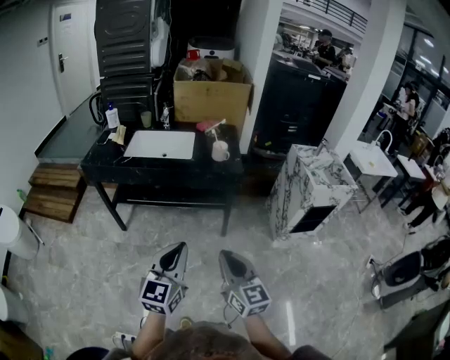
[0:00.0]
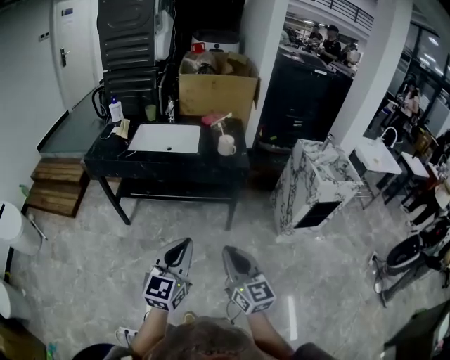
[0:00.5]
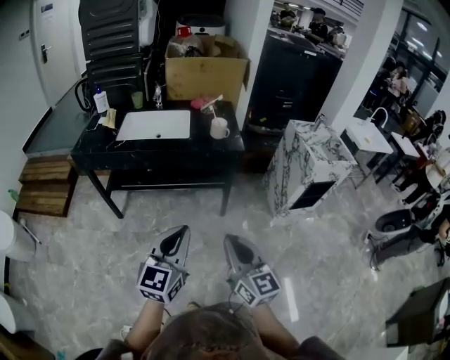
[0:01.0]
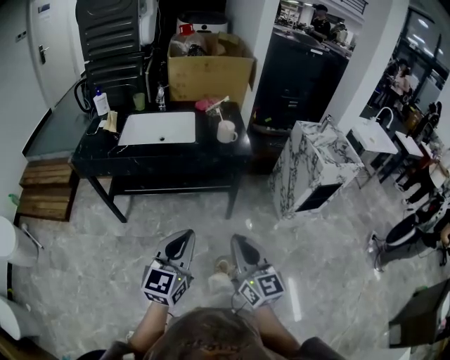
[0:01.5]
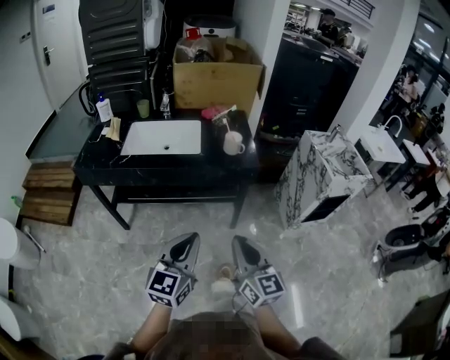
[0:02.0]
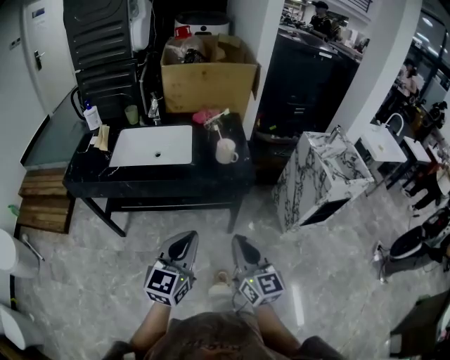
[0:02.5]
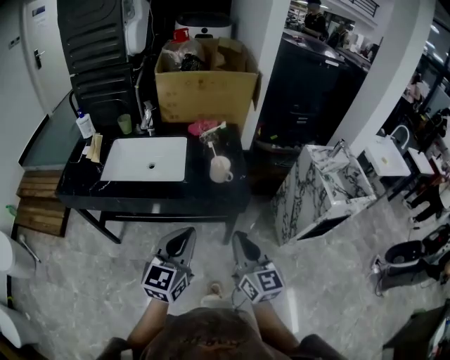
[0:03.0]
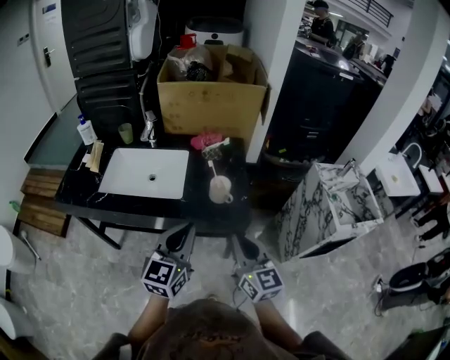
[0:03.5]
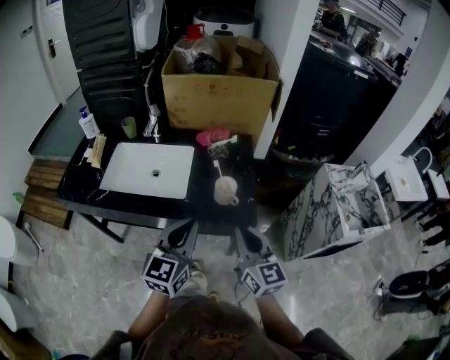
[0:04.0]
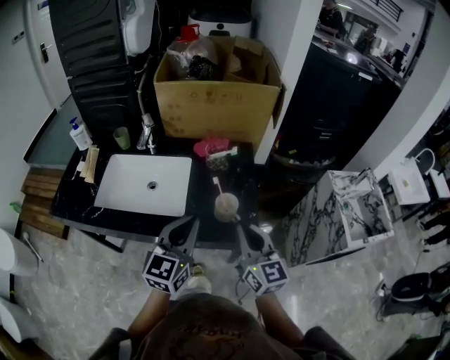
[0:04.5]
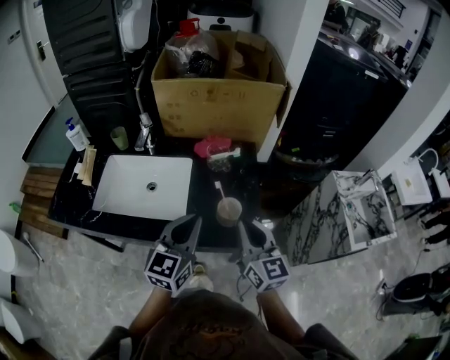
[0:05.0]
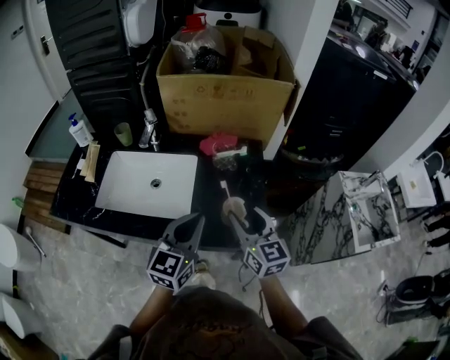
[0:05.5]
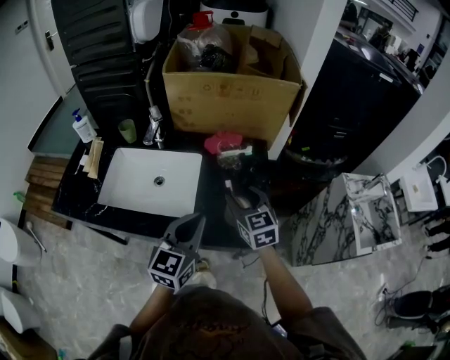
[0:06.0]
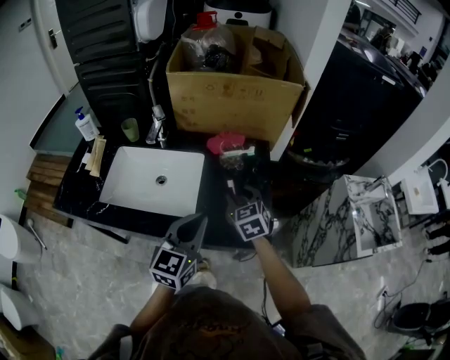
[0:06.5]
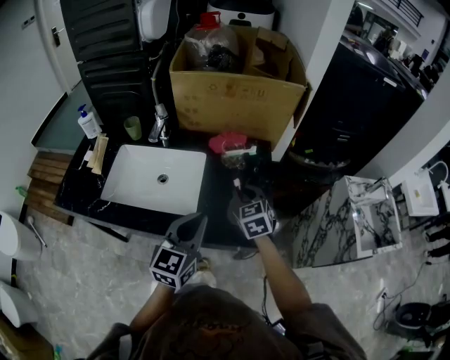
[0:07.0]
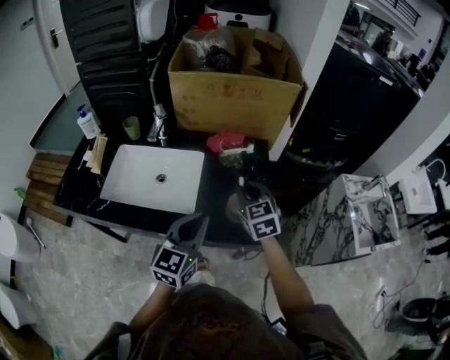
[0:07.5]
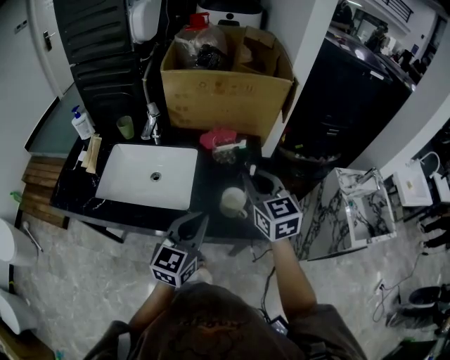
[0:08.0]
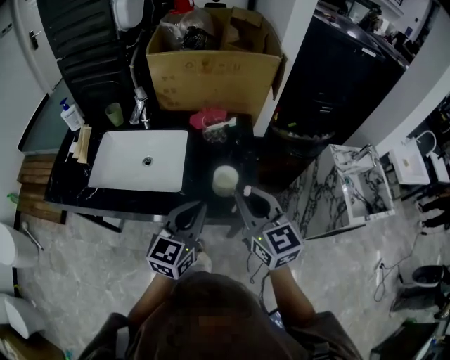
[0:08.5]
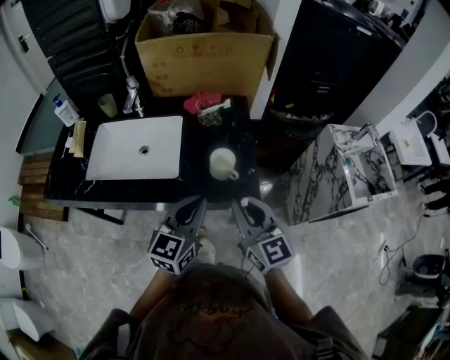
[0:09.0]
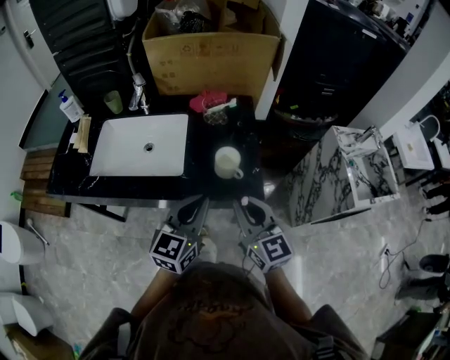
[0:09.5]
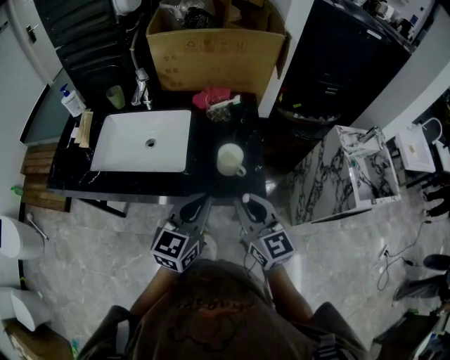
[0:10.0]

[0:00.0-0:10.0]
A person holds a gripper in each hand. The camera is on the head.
0:00.0 to 0:02.0: The grippers both shift forward by roughly 10 cm.
0:02.0 to 0:04.0: The grippers both shift forward by about 30 cm.
0:04.0 to 0:06.0: The right gripper travels forward by some 25 cm, turns by about 20 degrees, and opens its fingers. Meanwhile the left gripper is displaced forward by approximately 10 cm.
0:06.0 to 0:08.0: The right gripper goes roughly 10 cm upward, and closes its fingers.
0:08.0 to 0:10.0: The left gripper shifts some 5 cm backward. Meanwhile the right gripper moves backward and downward, approximately 20 cm.

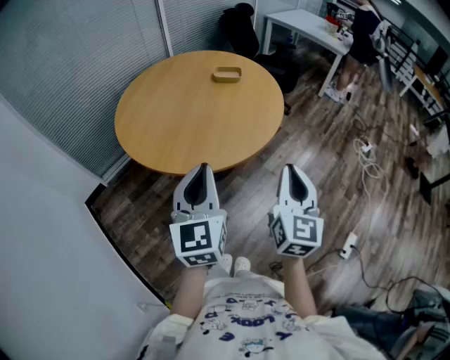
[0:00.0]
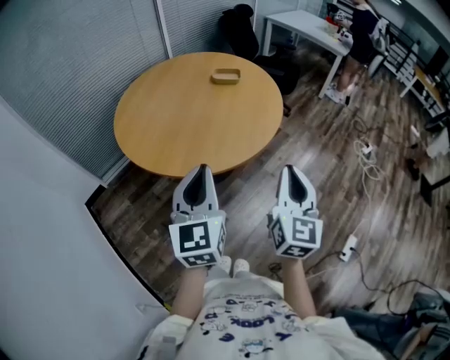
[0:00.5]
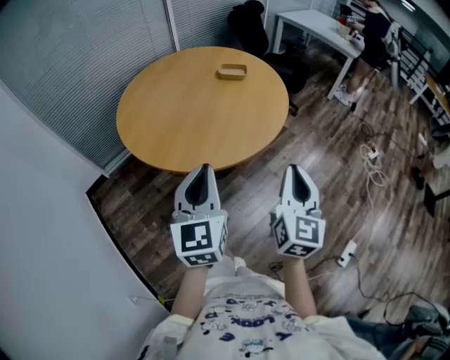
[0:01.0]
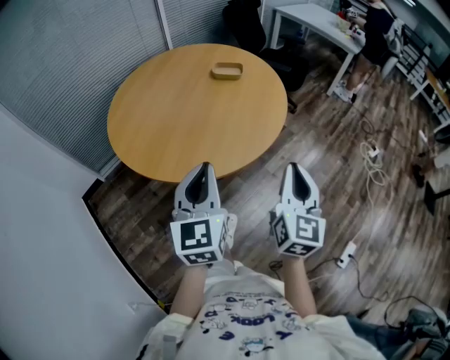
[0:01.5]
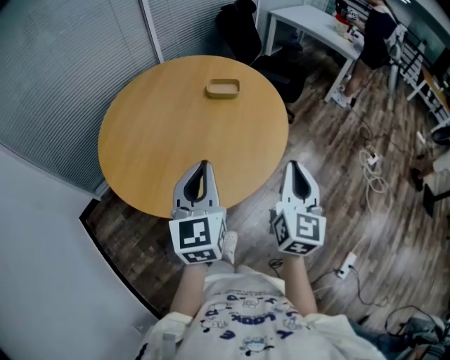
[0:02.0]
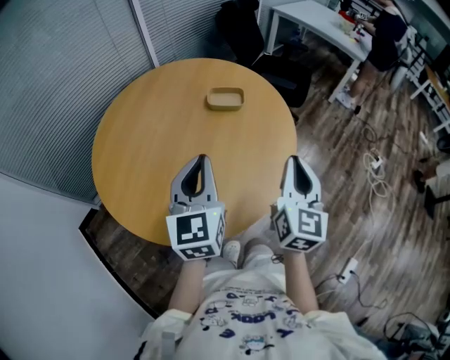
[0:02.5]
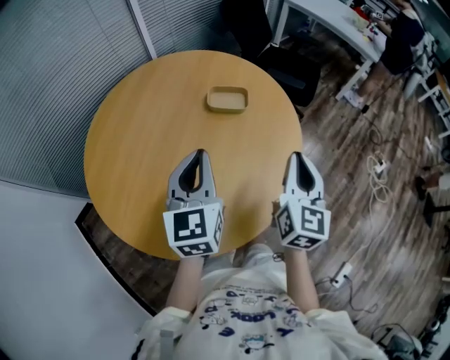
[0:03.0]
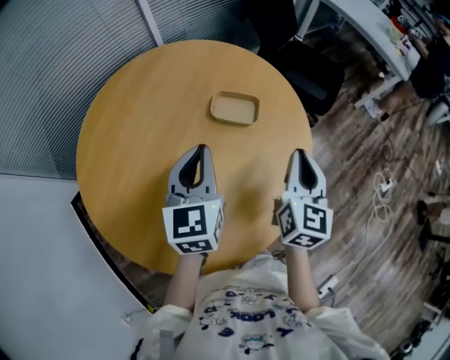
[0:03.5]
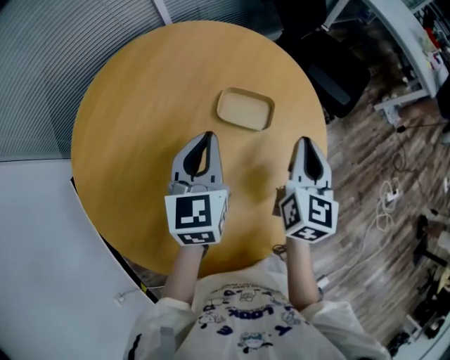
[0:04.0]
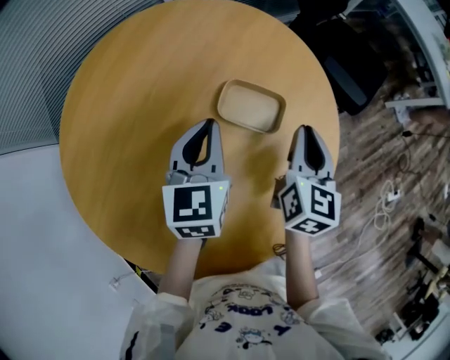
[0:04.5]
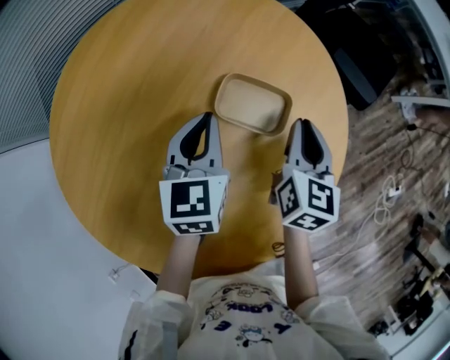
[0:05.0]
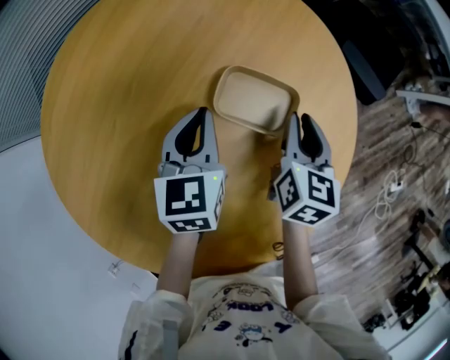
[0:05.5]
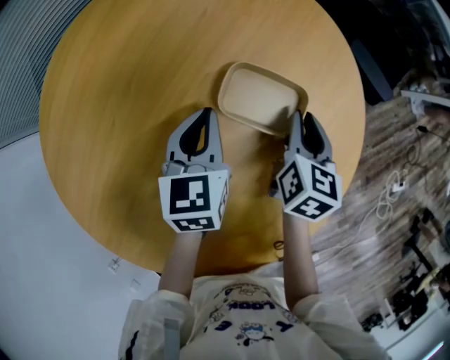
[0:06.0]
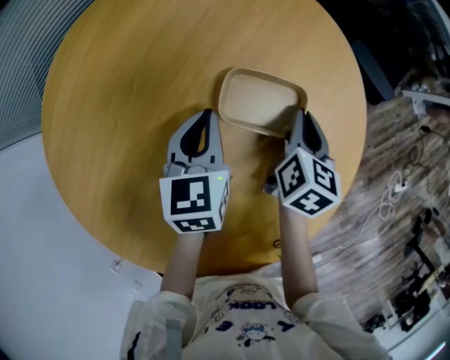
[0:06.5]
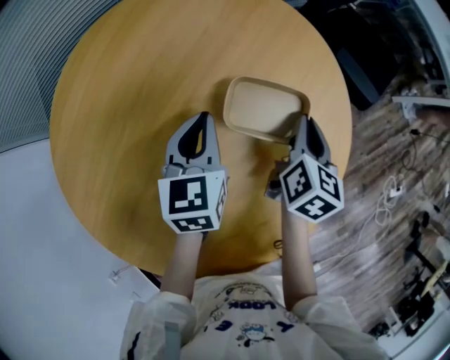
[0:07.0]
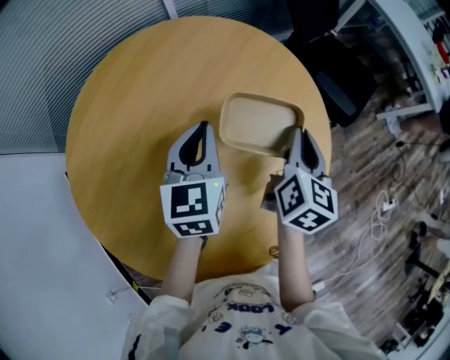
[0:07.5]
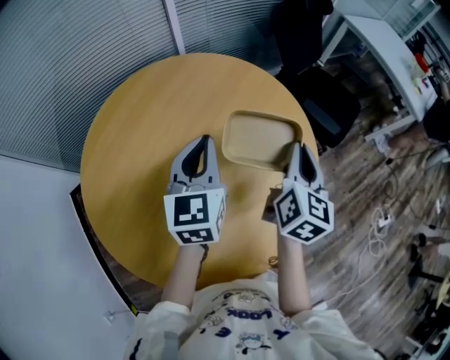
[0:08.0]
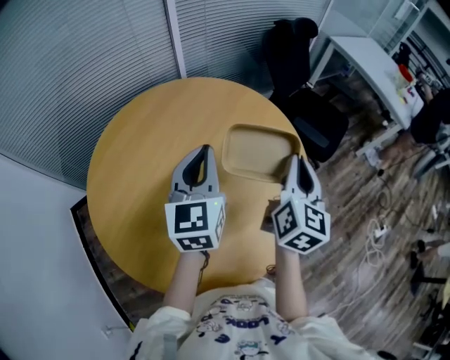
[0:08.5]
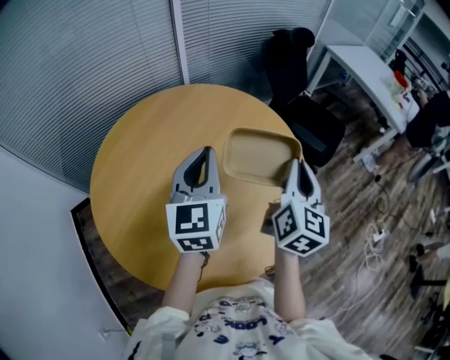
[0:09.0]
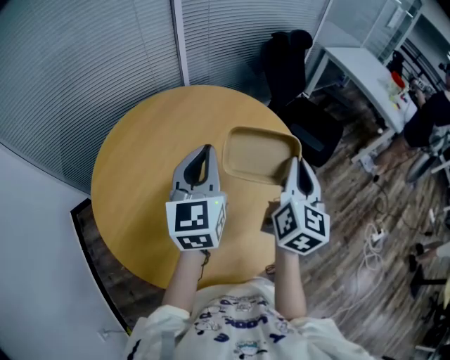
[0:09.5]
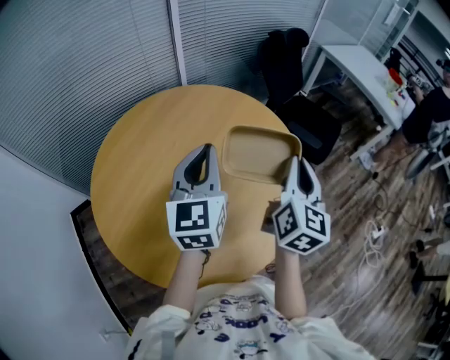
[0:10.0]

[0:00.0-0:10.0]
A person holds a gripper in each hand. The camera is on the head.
0:00.0 to 0:02.0: The two grippers go some 20 cm forward.
0:02.0 to 0:04.0: Both grippers move forward, roughly 40 cm.
0:04.0 to 0:06.0: Both grippers travel together downward and forward, approximately 20 cm.
0:06.0 to 0:08.0: The grippers both shift upward by about 25 cm. The right gripper turns by some 20 degrees, while the left gripper swivels approximately 20 degrees.
0:08.0 to 0:10.0: The right gripper heads backward and upward, covering some 15 cm. The left gripper is displaced upward and backward by approximately 15 cm.

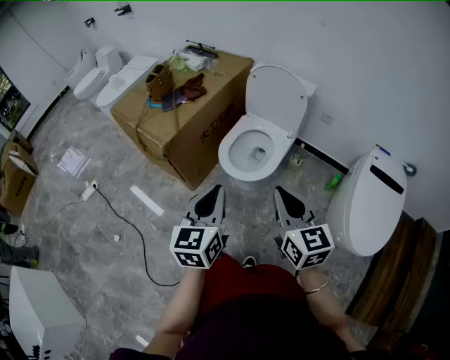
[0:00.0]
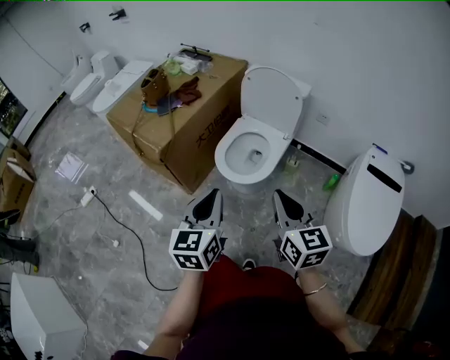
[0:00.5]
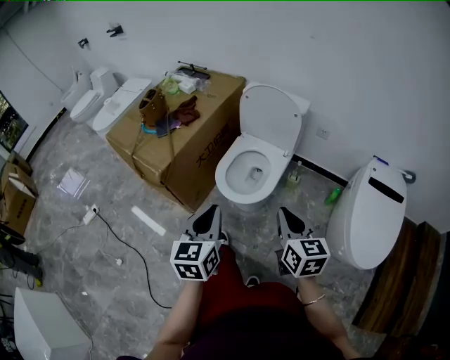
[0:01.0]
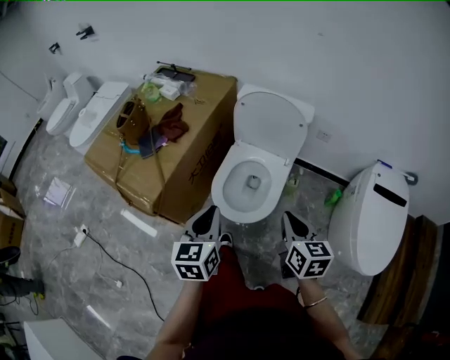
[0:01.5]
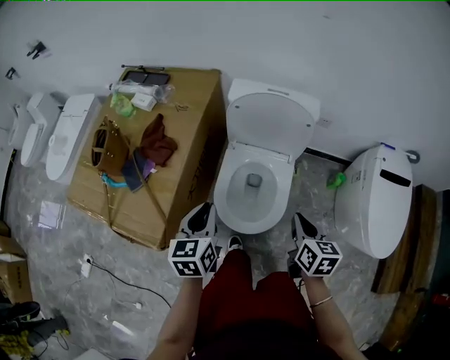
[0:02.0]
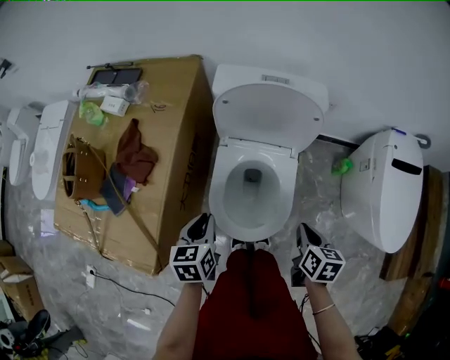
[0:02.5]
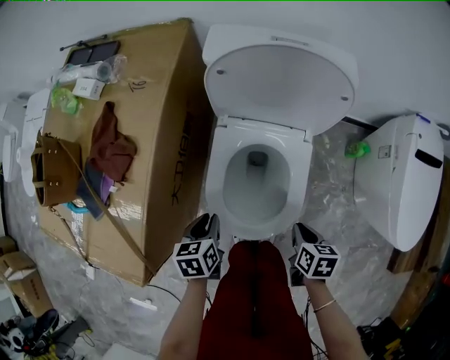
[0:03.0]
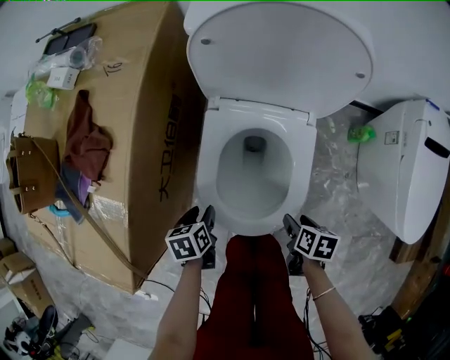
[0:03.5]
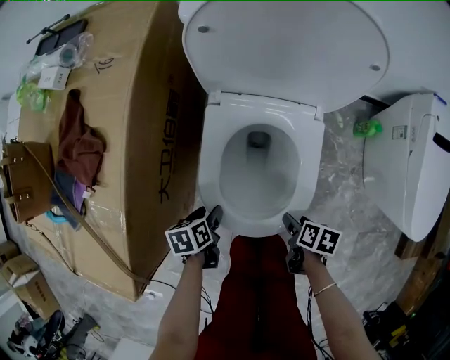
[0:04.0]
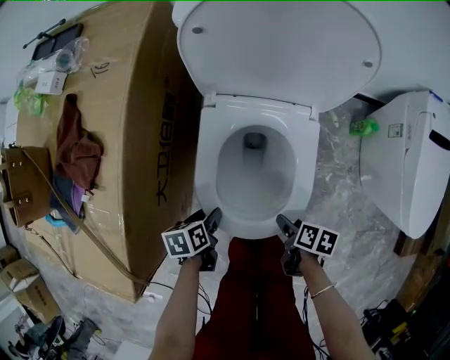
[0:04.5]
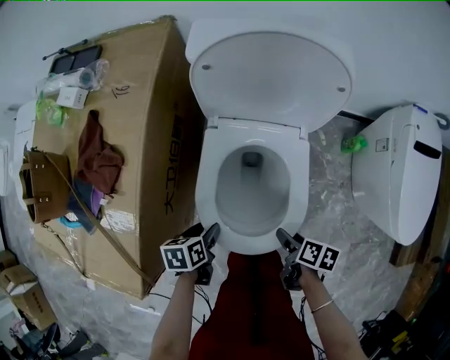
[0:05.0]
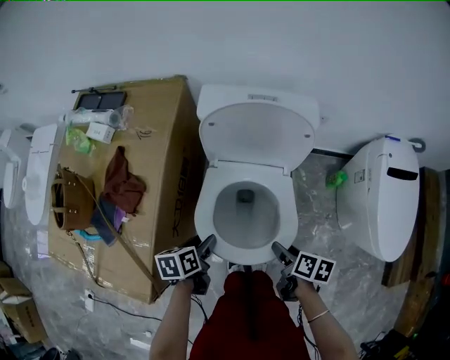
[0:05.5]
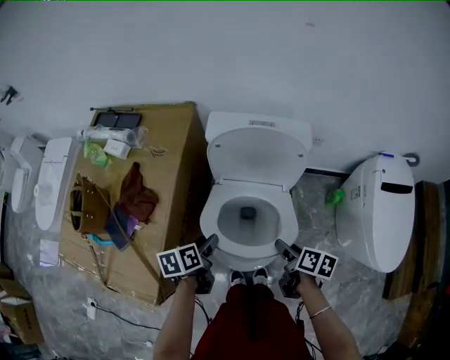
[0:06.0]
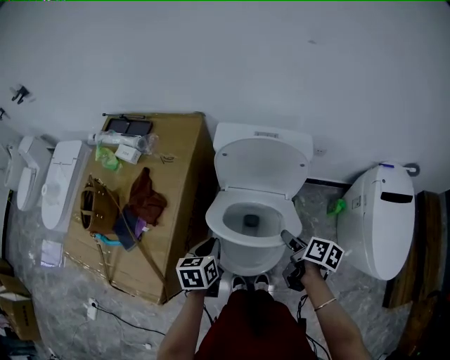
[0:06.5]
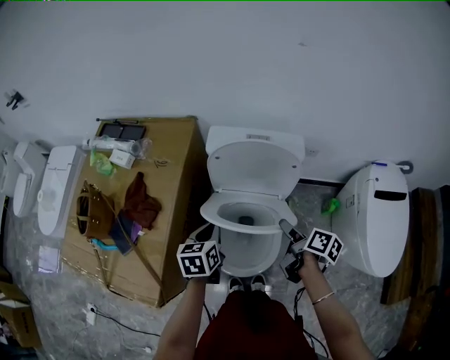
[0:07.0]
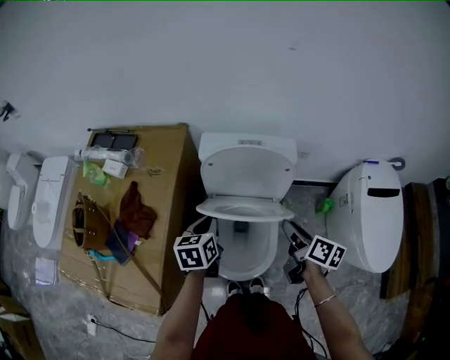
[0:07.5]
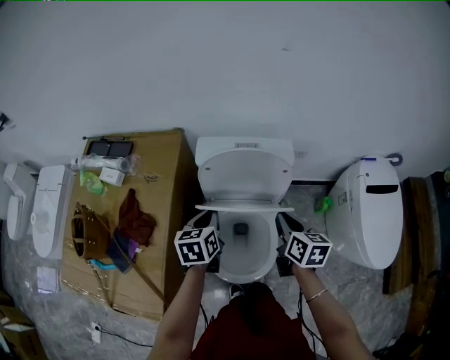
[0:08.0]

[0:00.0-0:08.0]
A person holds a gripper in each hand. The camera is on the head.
0:00.0 to 0:02.0: The left gripper is displaced forward by roughly 35 cm, and turns by approximately 20 degrees, while the right gripper travels forward and downward by some 30 cm, and swivels roughly 40 degrees.
0:02.0 to 0:04.0: Both grippers travel together downward, roughly 40 cm. The left gripper tilts its fingers approximately 30 degrees downward, and opens up, while the right gripper angles its fingers downward, by approximately 30 degrees, and opens its fingers.
0:04.0 to 0:06.0: The grippers both shift upward by some 25 cm. The right gripper swivels roughly 20 degrees.
0:06.0 to 0:08.0: The right gripper heads upward and forward, covering roughly 15 cm, rotates some 30 degrees, and closes up; the left gripper moves forward and upward, about 15 cm, swivels roughly 30 degrees, and closes its fingers.
